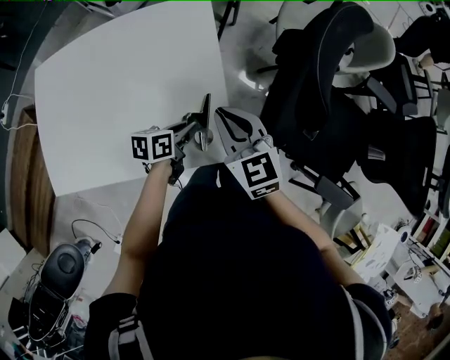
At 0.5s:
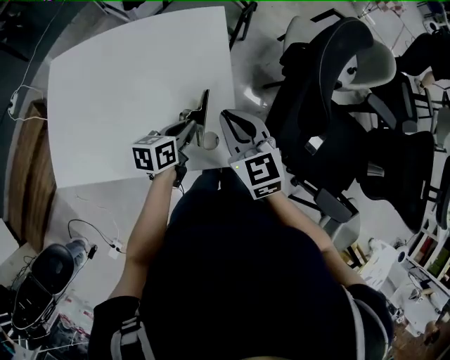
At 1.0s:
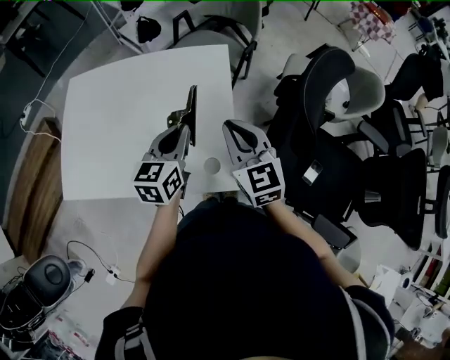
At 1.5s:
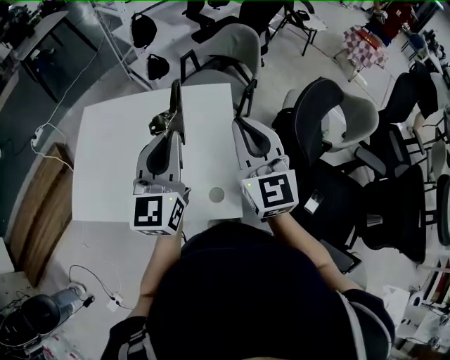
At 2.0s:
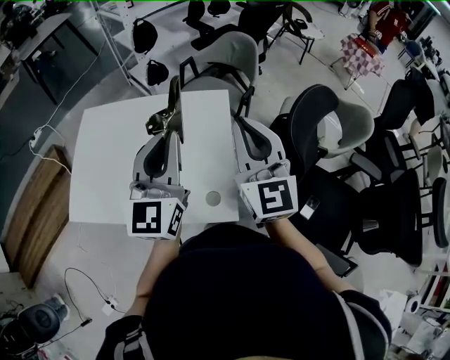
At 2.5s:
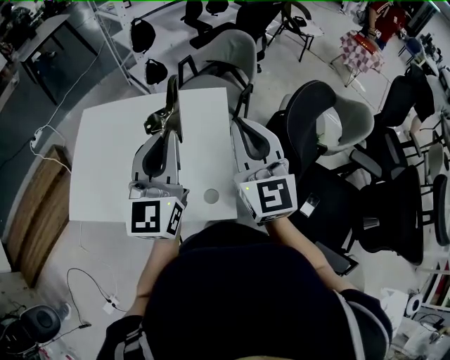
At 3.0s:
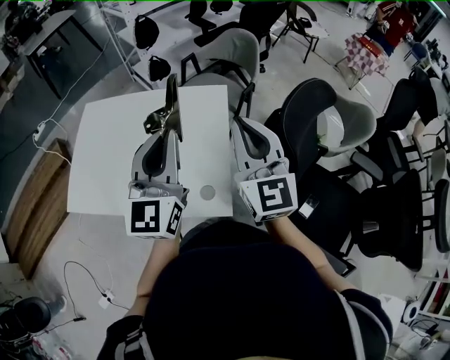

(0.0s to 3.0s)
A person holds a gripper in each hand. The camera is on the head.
0.0s - 1.5s: The left gripper goes about 35 cm upward, and points its fingers about 40 degrees further upward; the right gripper is displaced upward by about 20 cm, and swivels approximately 30 degrees.
1.5s - 3.0s: The left gripper ends up about 5 cm from where it was.

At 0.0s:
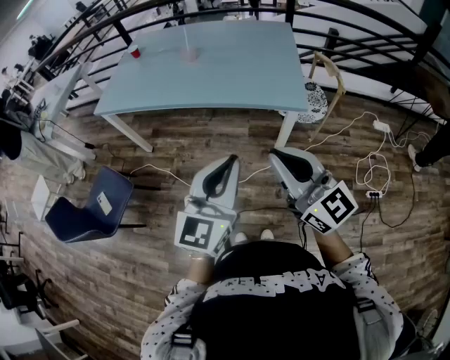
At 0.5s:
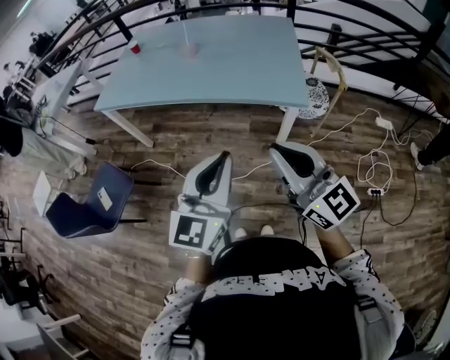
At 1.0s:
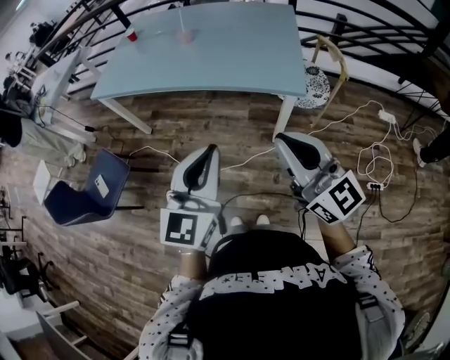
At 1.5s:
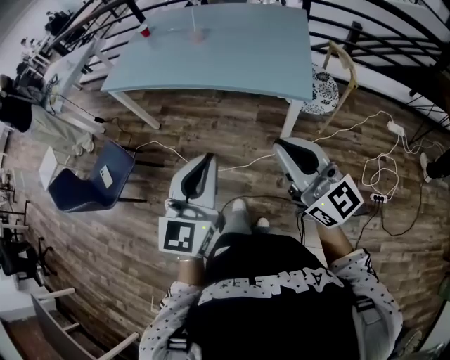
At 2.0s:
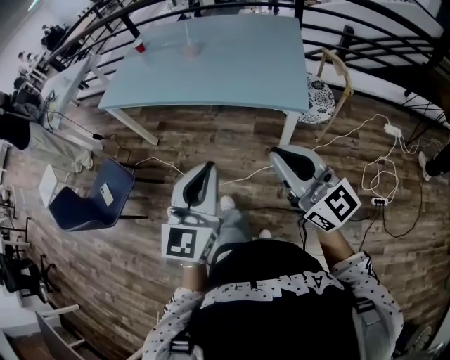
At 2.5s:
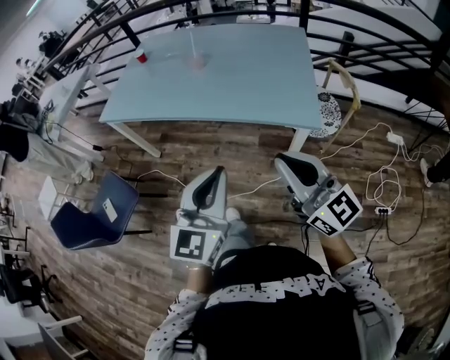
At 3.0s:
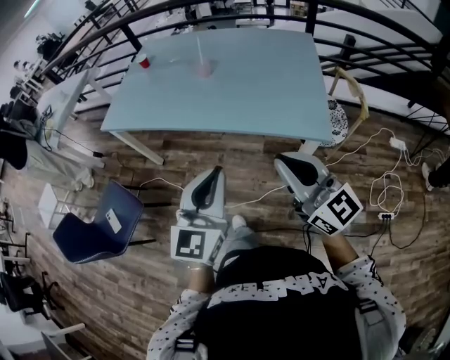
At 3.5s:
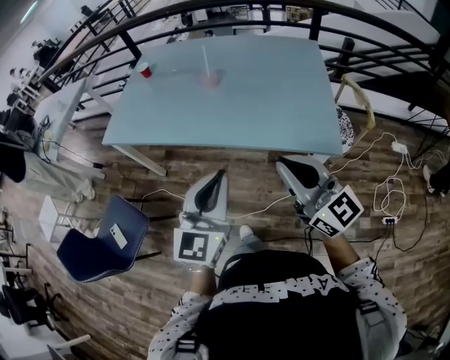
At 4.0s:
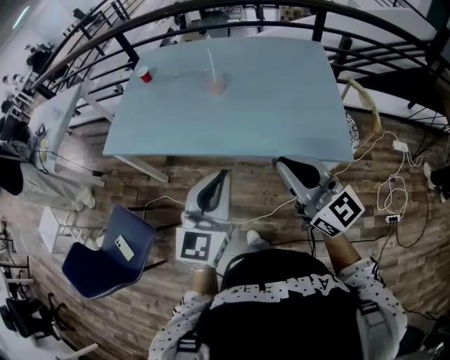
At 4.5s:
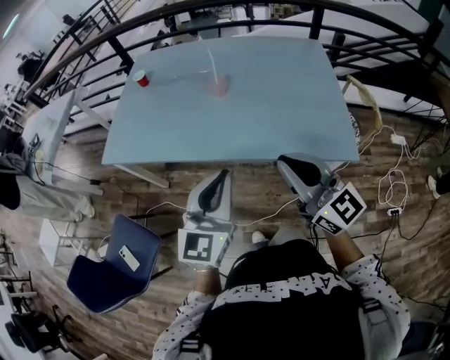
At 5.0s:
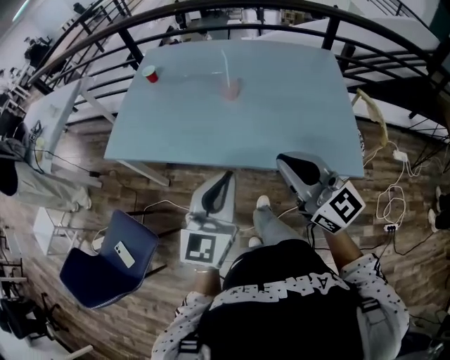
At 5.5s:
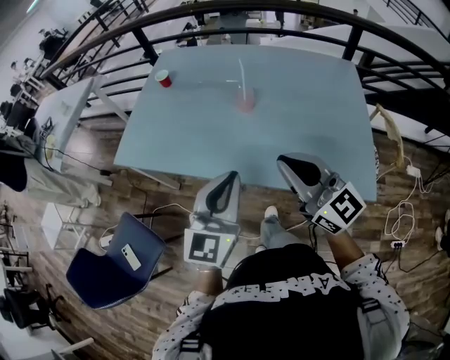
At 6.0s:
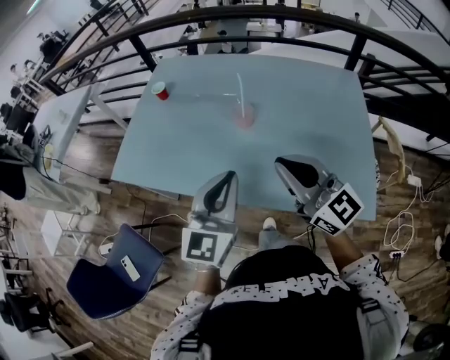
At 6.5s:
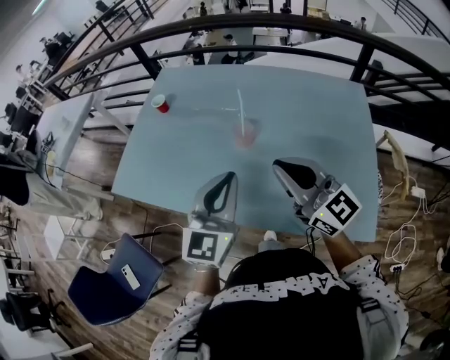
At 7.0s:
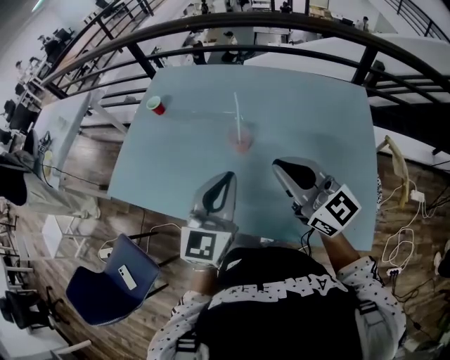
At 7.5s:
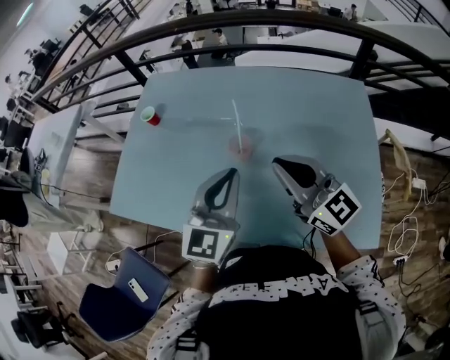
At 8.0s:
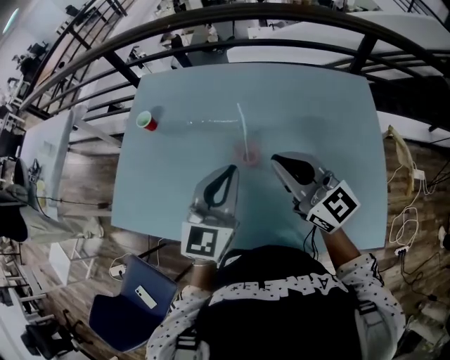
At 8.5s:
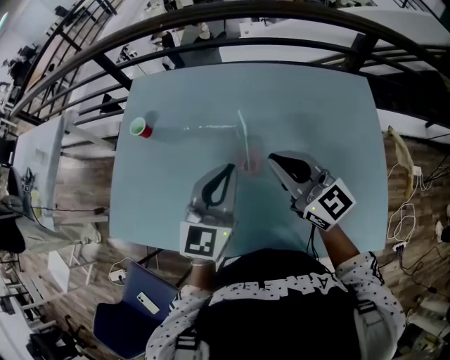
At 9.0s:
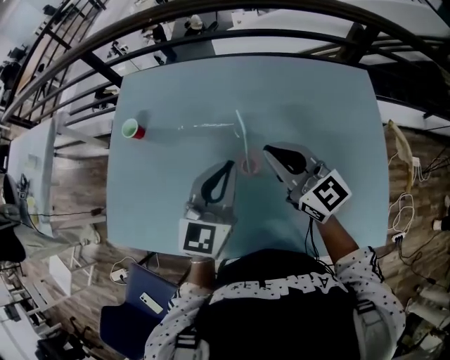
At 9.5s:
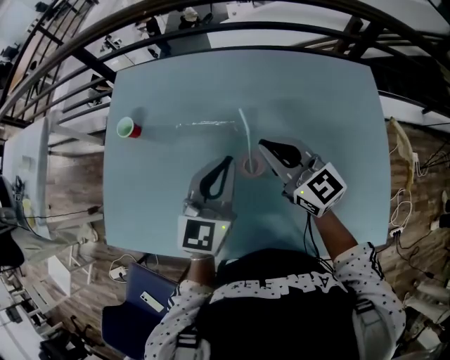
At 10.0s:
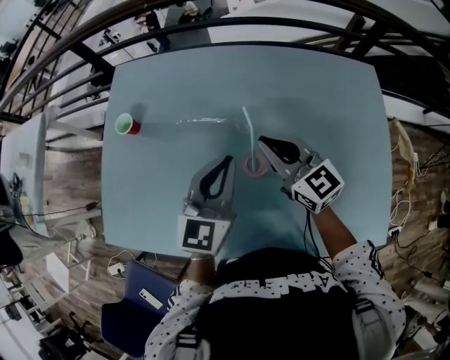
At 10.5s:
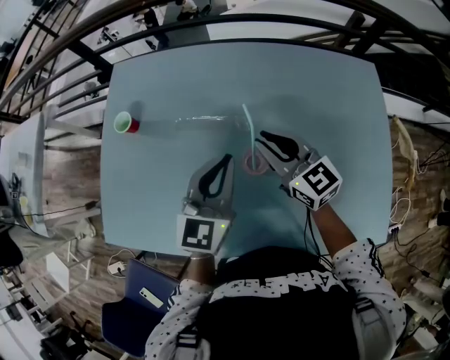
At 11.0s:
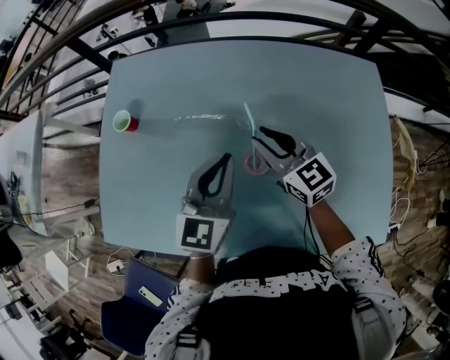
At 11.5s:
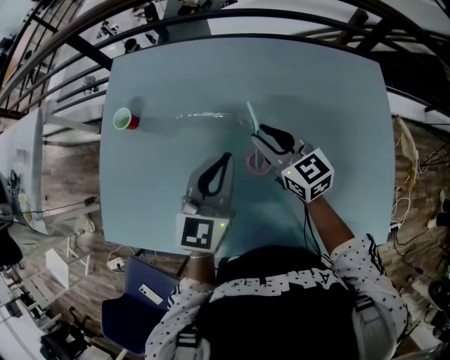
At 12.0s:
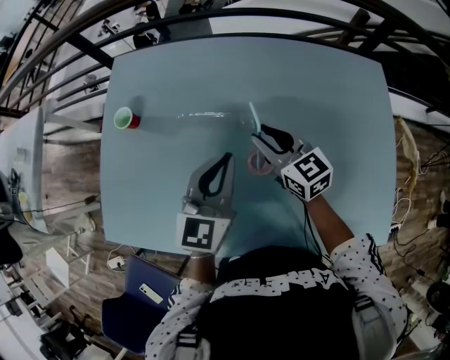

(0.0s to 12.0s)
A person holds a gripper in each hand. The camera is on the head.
0.0s - 2.0s: The right gripper travels to the right by approximately 5 cm.
2.0s - 4.0s: The two grippers go roughly 35 cm forward and to the left.
4.0s - 6.0s: Both grippers travel together forward, approximately 25 cm.
6.0s - 8.0s: Both grippers move forward, about 25 cm.
8.0s - 10.0s: Both grippers move forward and downward, approximately 15 cm.
10.0s - 12.0s: The right gripper goes approximately 5 cm downward, and opens its fingers.

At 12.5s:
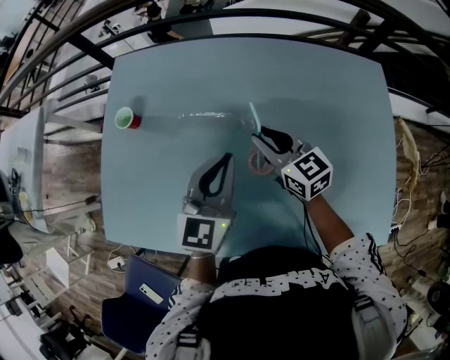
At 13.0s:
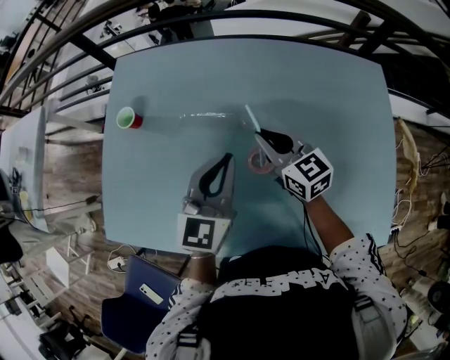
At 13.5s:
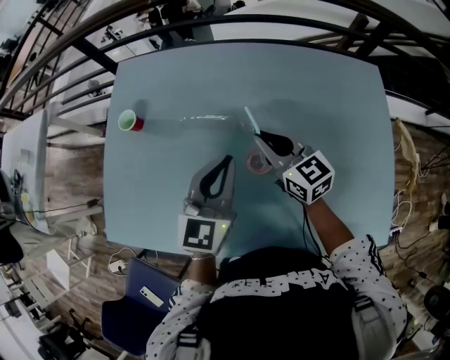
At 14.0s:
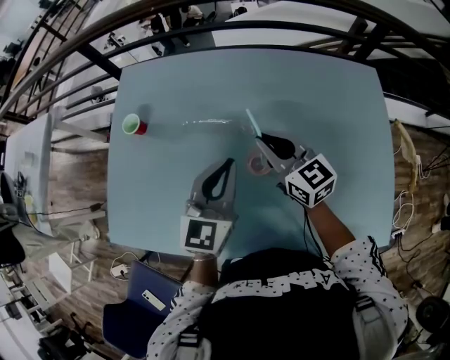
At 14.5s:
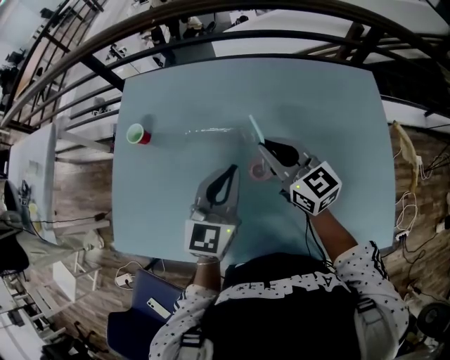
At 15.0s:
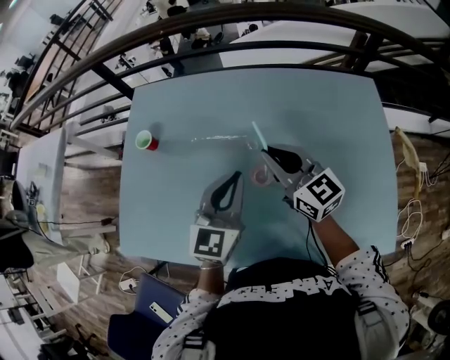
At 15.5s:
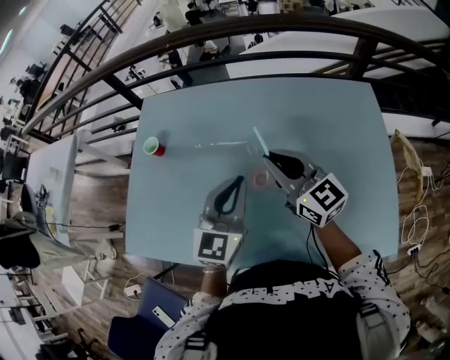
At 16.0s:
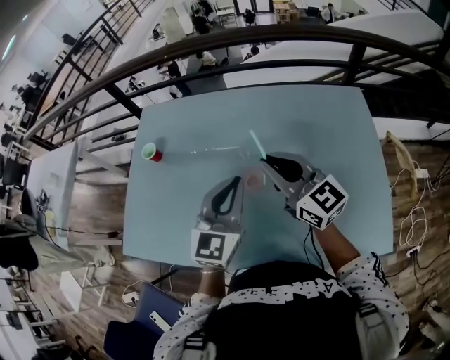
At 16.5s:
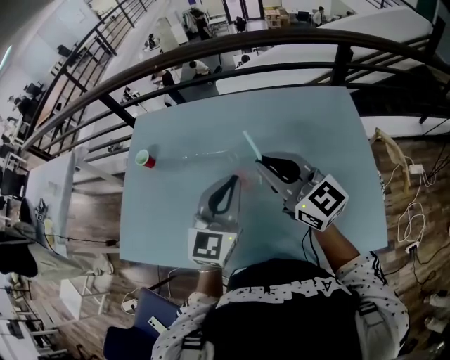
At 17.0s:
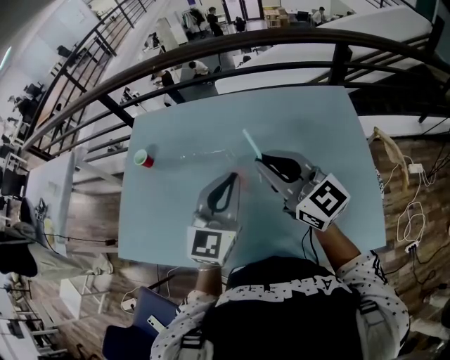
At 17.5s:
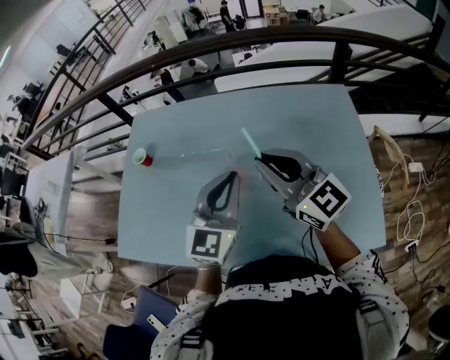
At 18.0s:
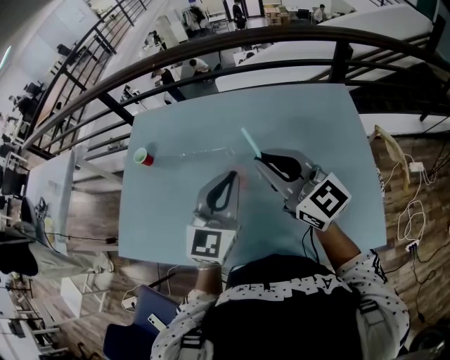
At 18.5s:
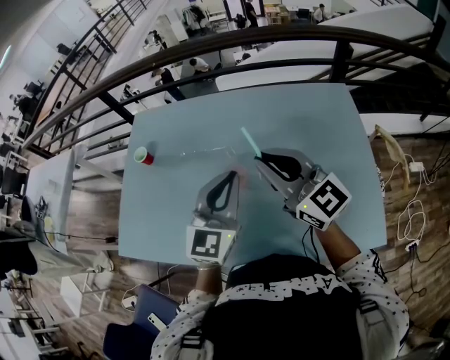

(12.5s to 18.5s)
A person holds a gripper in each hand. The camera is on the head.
12.5s - 14.5s: The right gripper moves upward, about 10 cm.
14.5s - 16.5s: The right gripper travels backward, upward and to the right by approximately 20 cm. The left gripper heads backward, to the right and upward, covering some 15 cm.
16.5s - 18.5s: The grippers make only small movements.

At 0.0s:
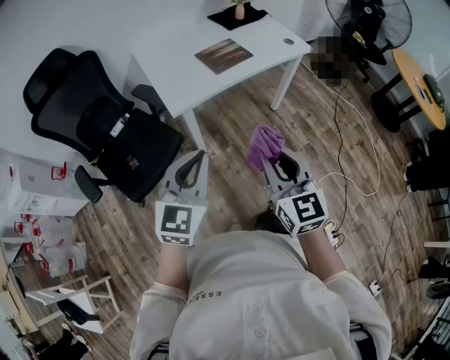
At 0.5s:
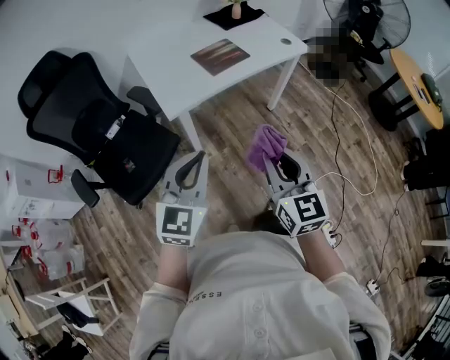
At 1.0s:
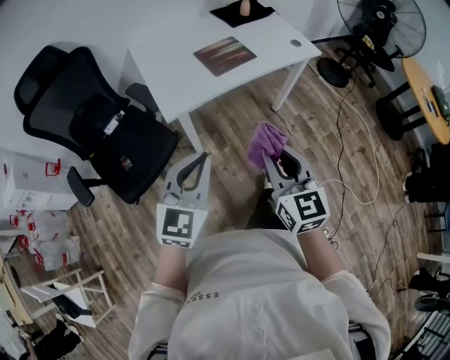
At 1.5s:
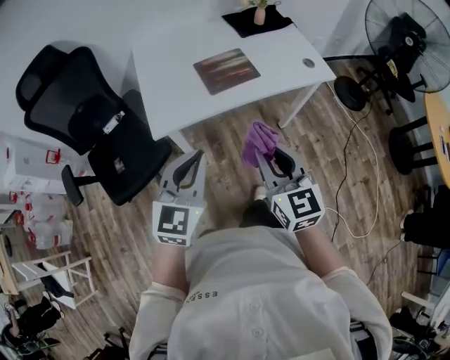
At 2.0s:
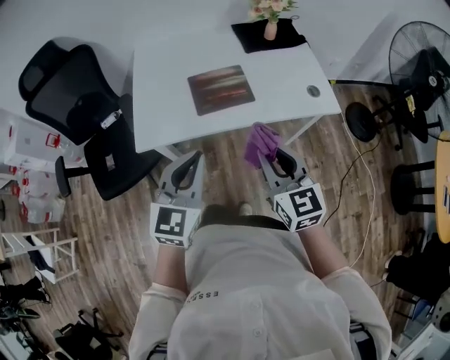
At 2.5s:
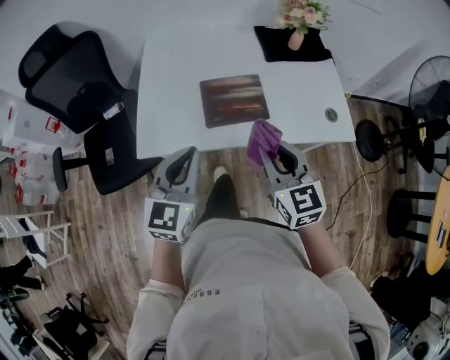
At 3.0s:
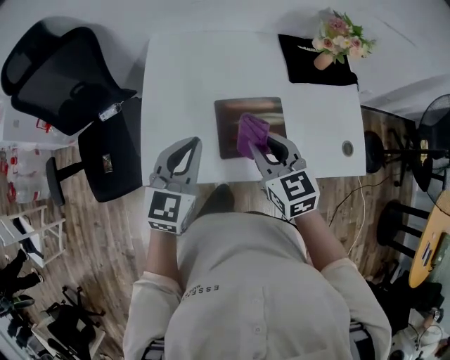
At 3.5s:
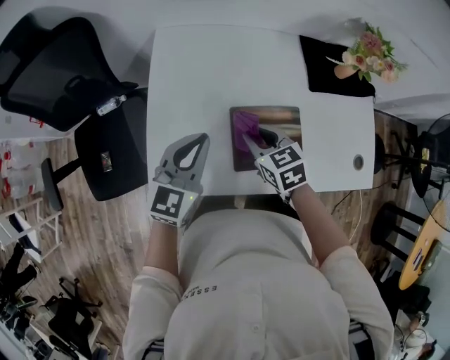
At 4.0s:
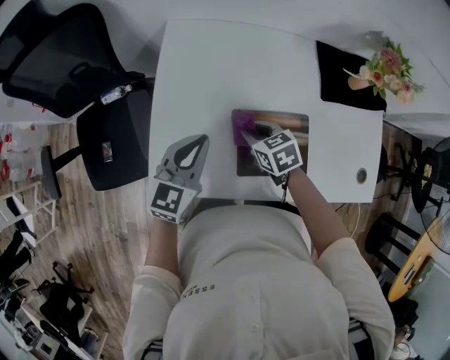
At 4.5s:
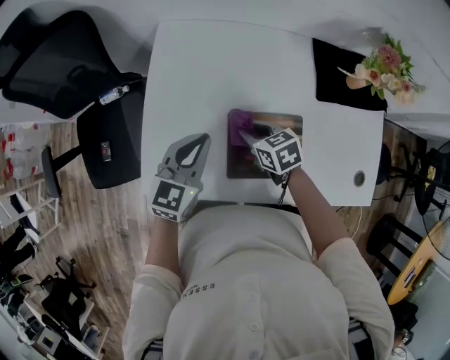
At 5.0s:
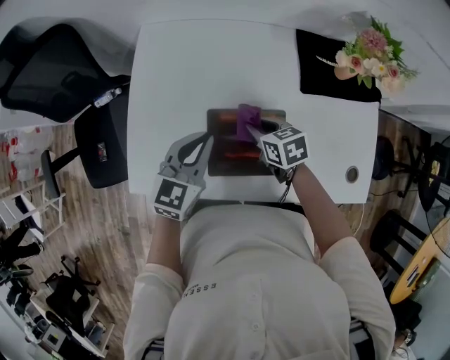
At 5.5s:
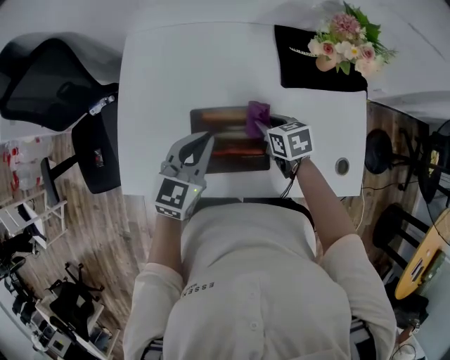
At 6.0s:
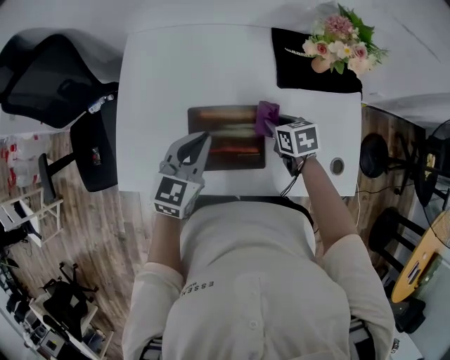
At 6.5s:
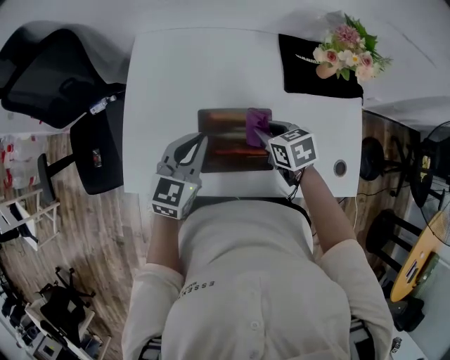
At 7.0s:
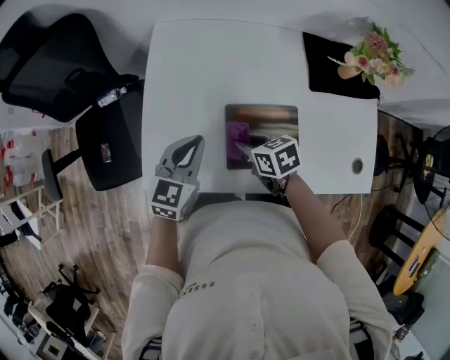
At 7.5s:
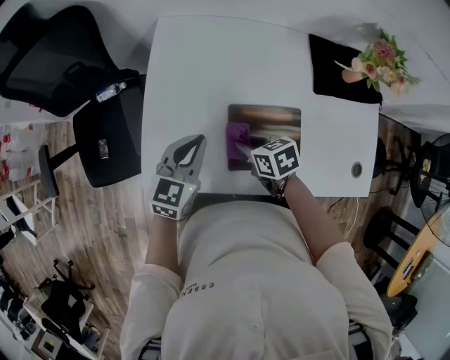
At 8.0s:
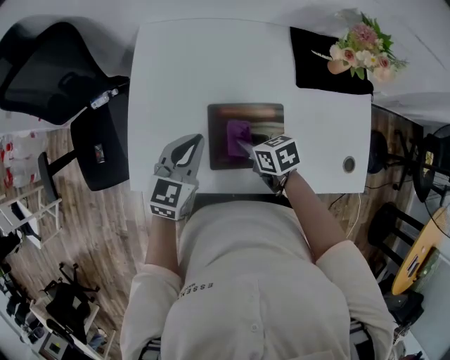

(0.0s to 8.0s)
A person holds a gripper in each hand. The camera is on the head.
0.0s - 2.0s: Both grippers travel together forward and to the right, about 35 cm. The right gripper changes its angle by approximately 20 degrees. The left gripper turns by about 20 degrees.
2.0s - 4.0s: The left gripper moves forward, roughly 35 cm; the right gripper heads forward and downward, covering approximately 50 cm, and tilts its fingers roughly 40 degrees downward.
4.0s - 6.0s: The two grippers go about 20 cm to the right.
6.0s - 8.0s: The left gripper shifts some 10 cm to the left; the right gripper shifts about 15 cm to the left.
